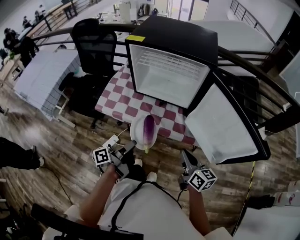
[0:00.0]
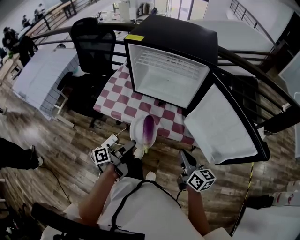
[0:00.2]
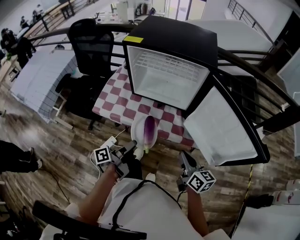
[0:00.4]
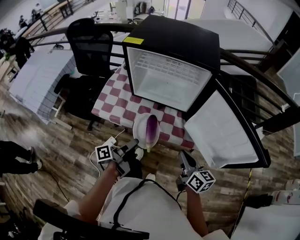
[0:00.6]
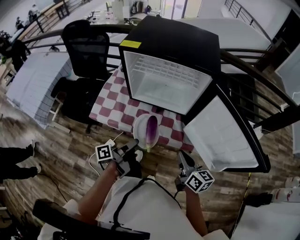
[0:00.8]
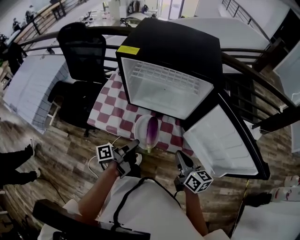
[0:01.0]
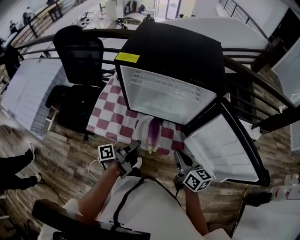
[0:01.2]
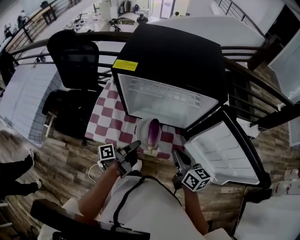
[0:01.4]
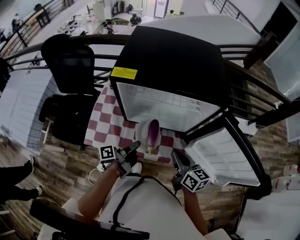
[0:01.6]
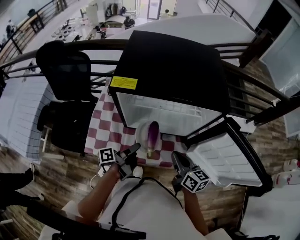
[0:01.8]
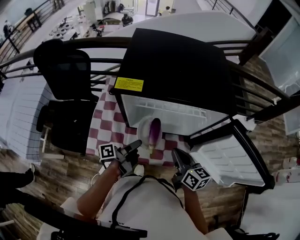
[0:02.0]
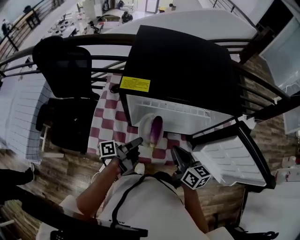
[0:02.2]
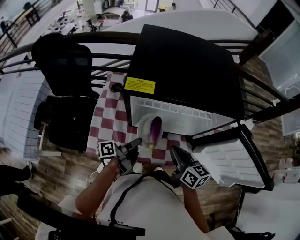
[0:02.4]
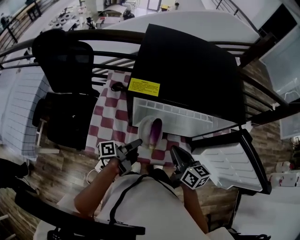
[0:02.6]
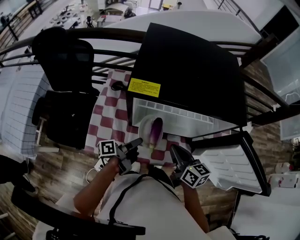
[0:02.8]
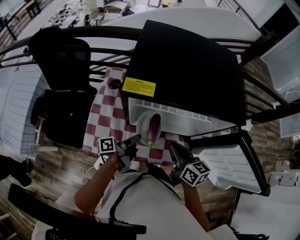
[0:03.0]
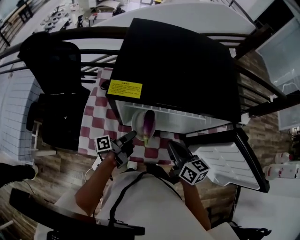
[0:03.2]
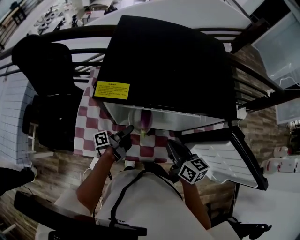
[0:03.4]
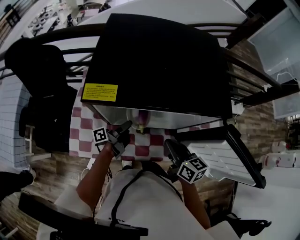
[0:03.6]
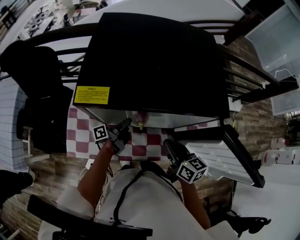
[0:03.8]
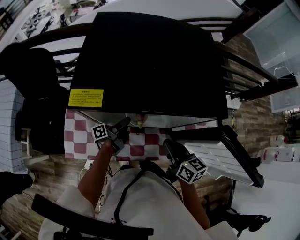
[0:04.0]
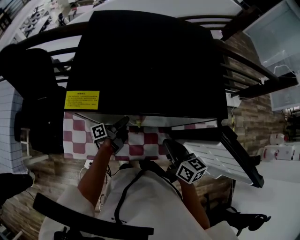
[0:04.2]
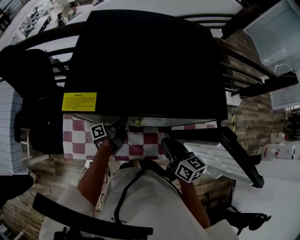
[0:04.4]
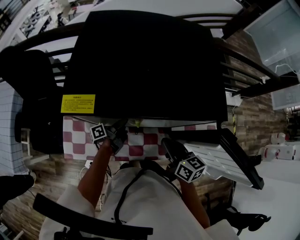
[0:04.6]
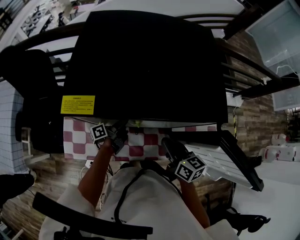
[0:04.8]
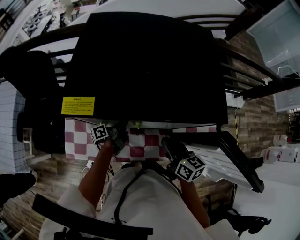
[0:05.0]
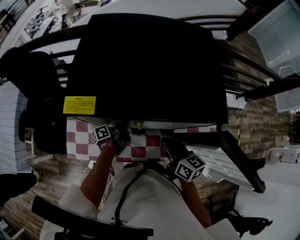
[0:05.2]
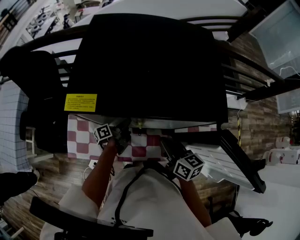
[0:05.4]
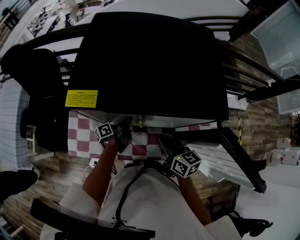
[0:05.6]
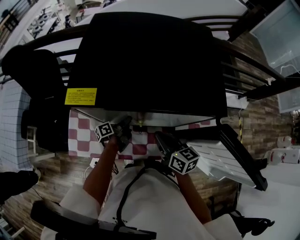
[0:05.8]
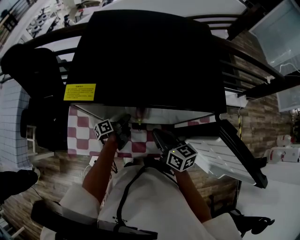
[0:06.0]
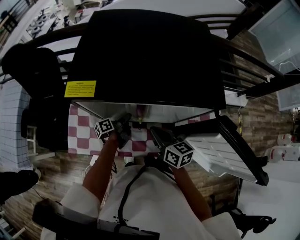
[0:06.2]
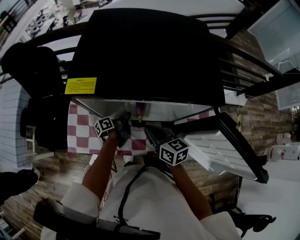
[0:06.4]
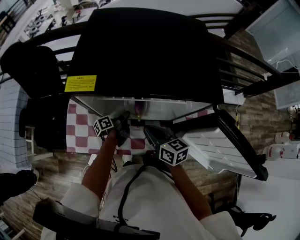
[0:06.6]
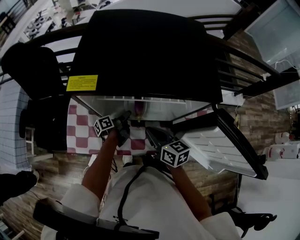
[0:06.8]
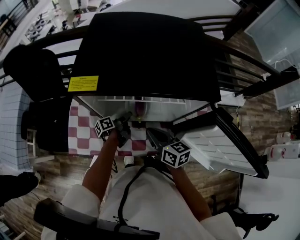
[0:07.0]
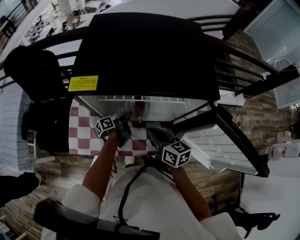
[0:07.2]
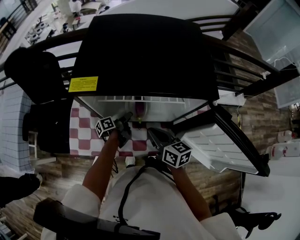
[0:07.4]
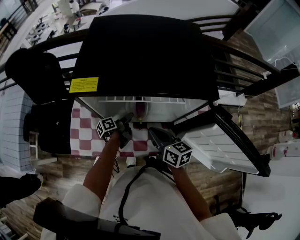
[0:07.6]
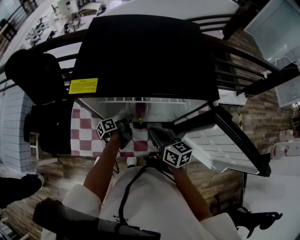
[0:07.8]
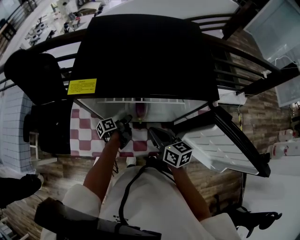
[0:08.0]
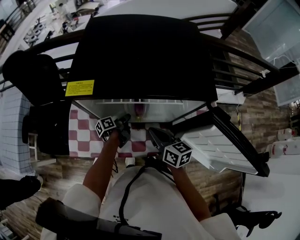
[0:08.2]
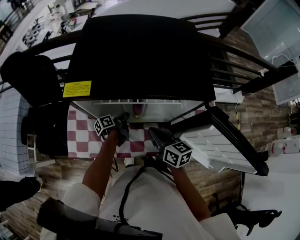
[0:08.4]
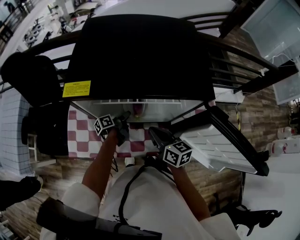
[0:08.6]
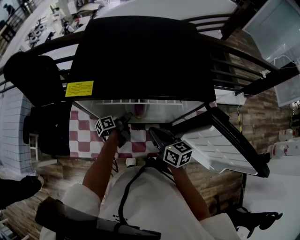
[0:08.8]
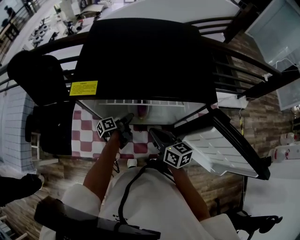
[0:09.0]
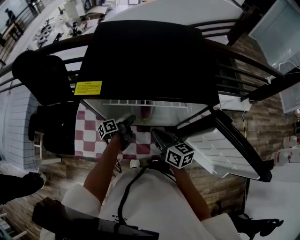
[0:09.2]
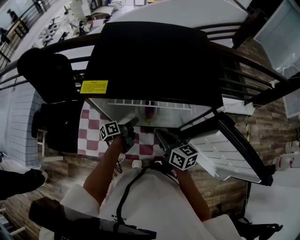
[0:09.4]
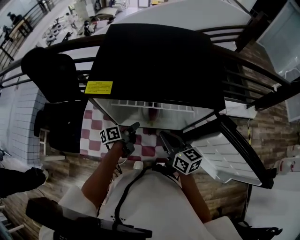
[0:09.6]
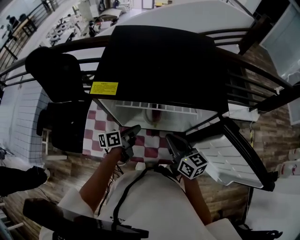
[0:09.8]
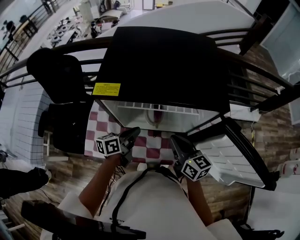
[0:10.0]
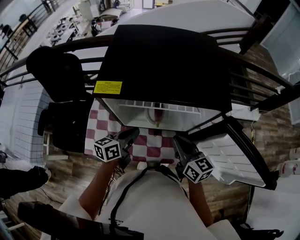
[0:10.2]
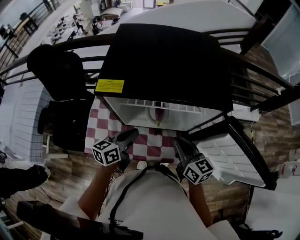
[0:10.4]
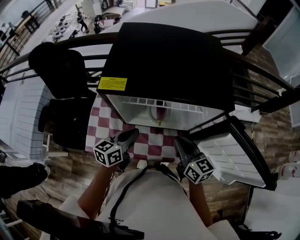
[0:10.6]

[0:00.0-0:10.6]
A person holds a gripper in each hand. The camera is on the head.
0:00.0 to 0:01.6: The right gripper moves approximately 20 cm.
0:01.6 to 0:03.0: The right gripper ends up about 10 cm from where it was.
0:03.0 to 0:04.6: The right gripper moves some 10 cm.
0:09.0 to 0:10.6: The right gripper ends up about 5 cm from where it was.

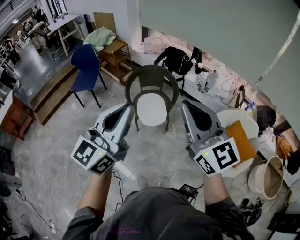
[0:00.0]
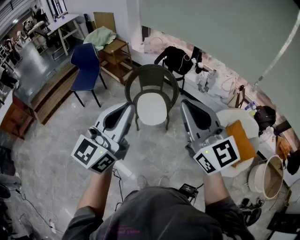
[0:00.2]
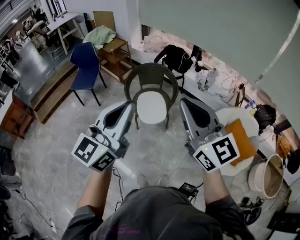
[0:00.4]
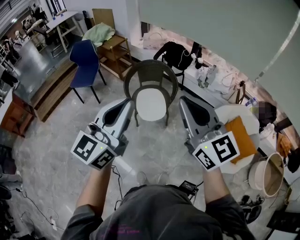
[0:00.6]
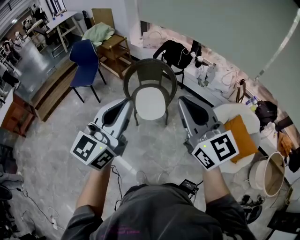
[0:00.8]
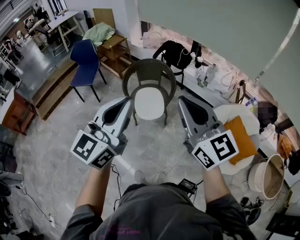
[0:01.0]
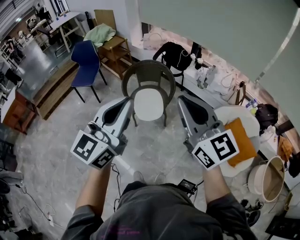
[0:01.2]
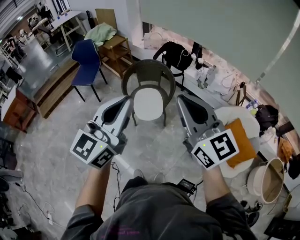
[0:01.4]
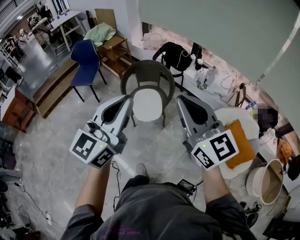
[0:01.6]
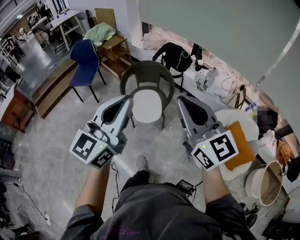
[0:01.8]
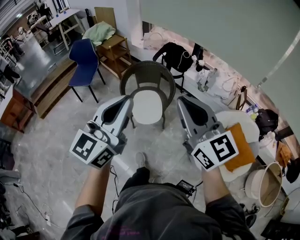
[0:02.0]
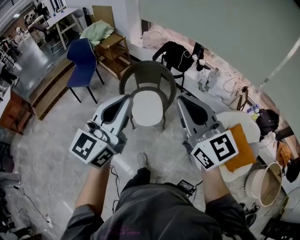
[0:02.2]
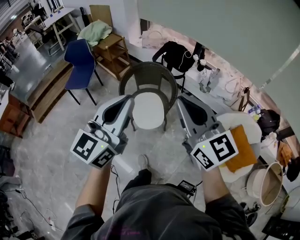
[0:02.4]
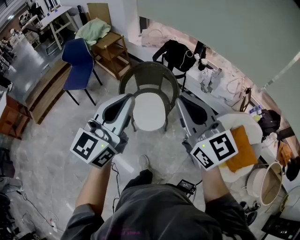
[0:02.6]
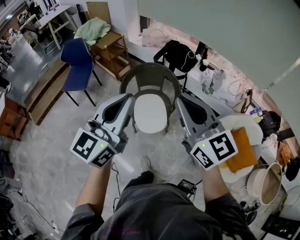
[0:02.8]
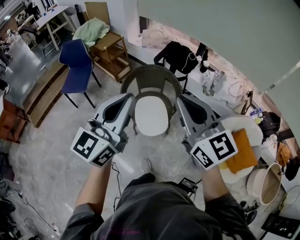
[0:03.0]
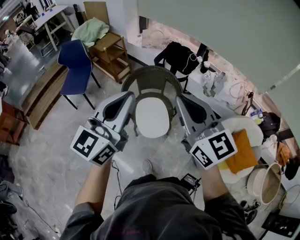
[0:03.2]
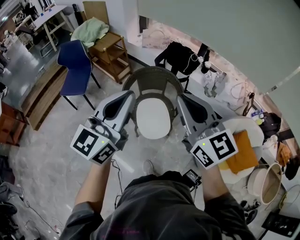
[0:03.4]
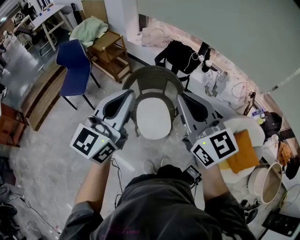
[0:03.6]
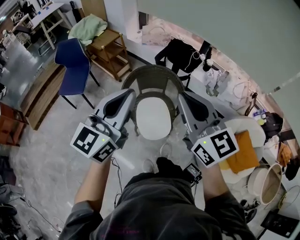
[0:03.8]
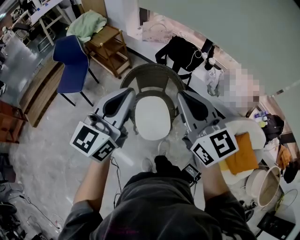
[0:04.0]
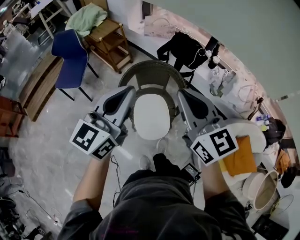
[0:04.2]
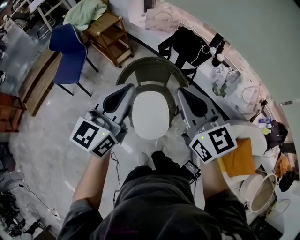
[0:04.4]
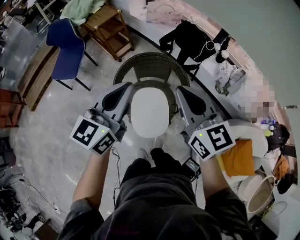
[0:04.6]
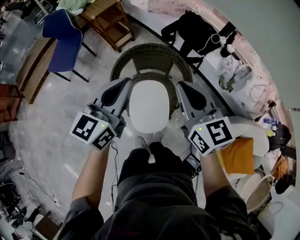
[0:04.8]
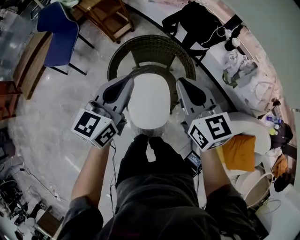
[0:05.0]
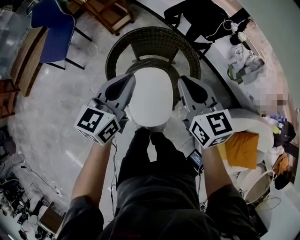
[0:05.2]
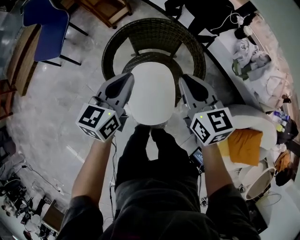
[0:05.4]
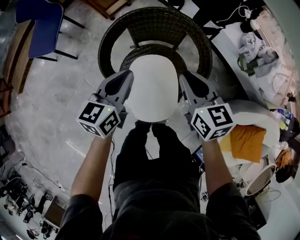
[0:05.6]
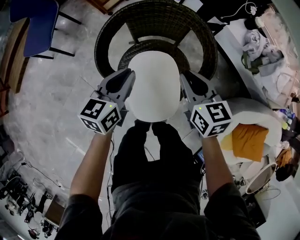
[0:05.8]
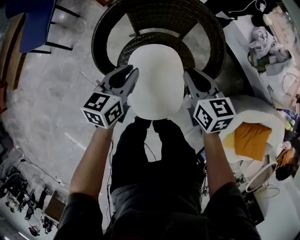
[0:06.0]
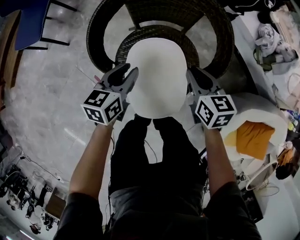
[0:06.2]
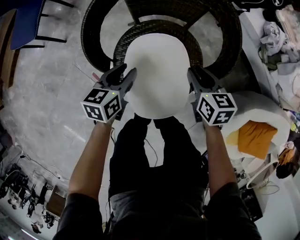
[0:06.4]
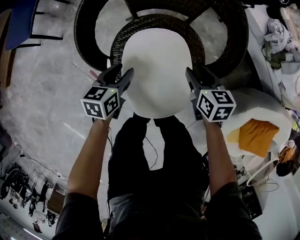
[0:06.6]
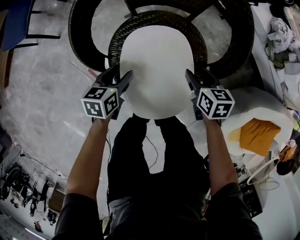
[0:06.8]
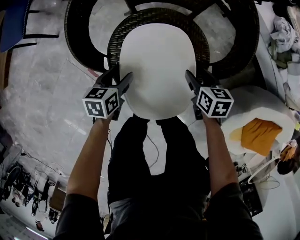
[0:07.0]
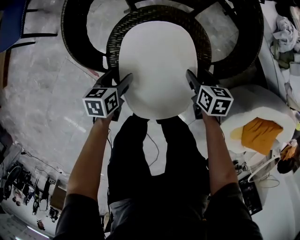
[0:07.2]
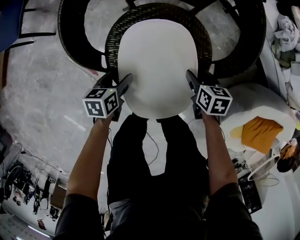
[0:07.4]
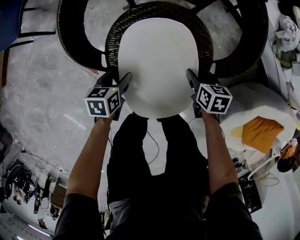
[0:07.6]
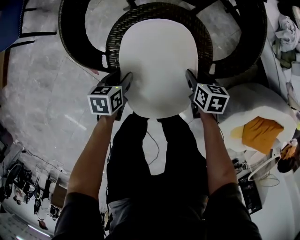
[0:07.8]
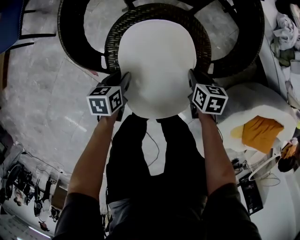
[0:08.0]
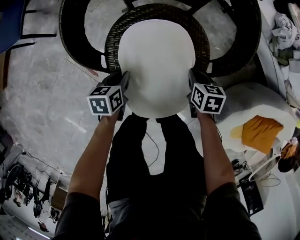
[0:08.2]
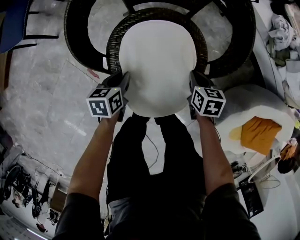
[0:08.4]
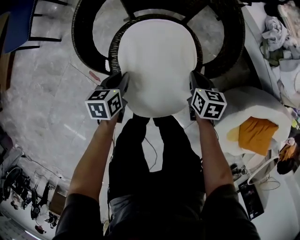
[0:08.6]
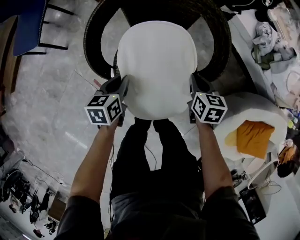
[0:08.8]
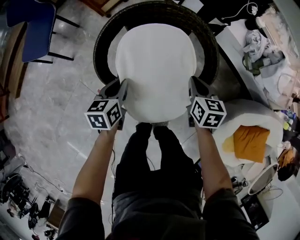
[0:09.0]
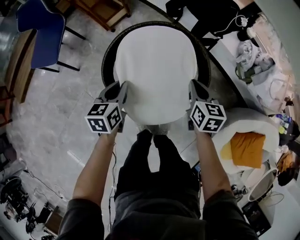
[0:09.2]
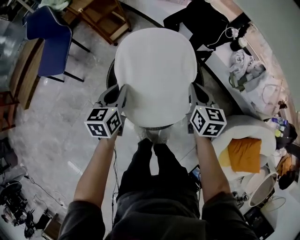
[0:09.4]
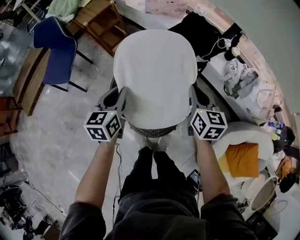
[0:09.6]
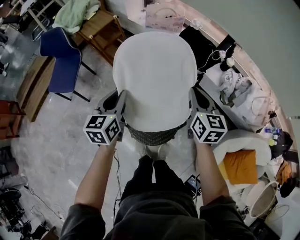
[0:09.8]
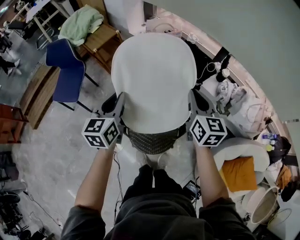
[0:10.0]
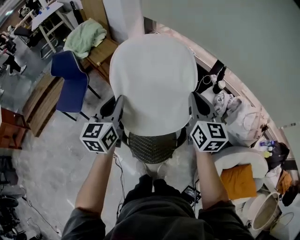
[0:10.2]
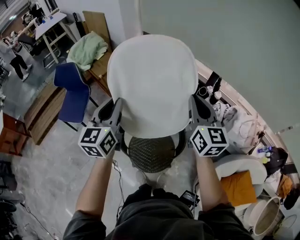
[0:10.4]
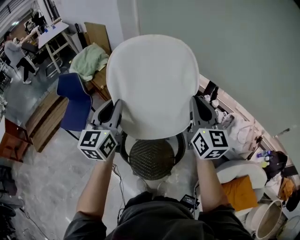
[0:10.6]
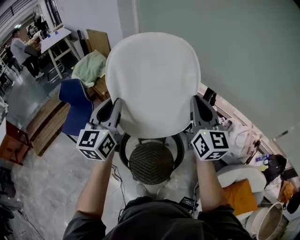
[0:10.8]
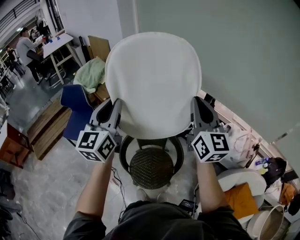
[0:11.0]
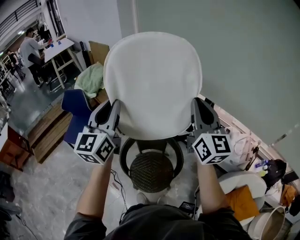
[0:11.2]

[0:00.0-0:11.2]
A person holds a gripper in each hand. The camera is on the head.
0:00.0 to 0:01.6: Both grippers travel together to the right, approximately 10 cm.
0:01.6 to 0:03.2: Both grippers move forward and to the left, roughly 30 cm.
0:03.2 to 0:04.8: Both grippers travel together forward and downward, roughly 35 cm. The left gripper changes its angle by approximately 20 degrees.
0:04.8 to 0:06.4: Both grippers move downward, about 50 cm. The left gripper points its fingers roughly 30 degrees further downward, and opens its fingers; the right gripper points its fingers about 30 degrees further downward.
0:06.4 to 0:08.0: The right gripper heads downward, covering some 15 cm, turns by roughly 20 degrees, and opens, then closes again; the left gripper travels downward and backward by approximately 15 cm, changes its angle by roughly 20 degrees, and opens, then closes once more.
0:08.0 to 0:09.6: The grippers both shift upward by about 50 cm. The right gripper angles its fingers upward, by roughly 40 degrees. The left gripper rotates some 40 degrees.
0:09.6 to 0:11.2: Both grippers travel together upward, roughly 50 cm. The right gripper tips its fingers upward by about 40 degrees; the left gripper angles its fingers upward, by some 40 degrees.

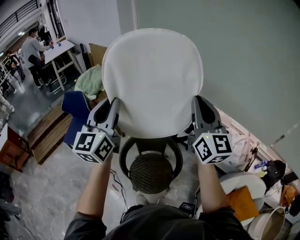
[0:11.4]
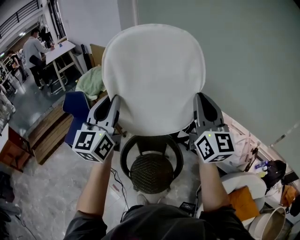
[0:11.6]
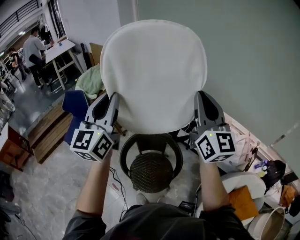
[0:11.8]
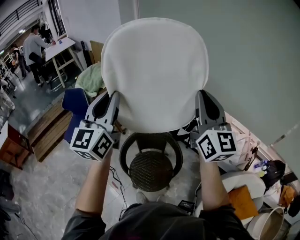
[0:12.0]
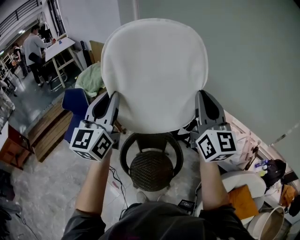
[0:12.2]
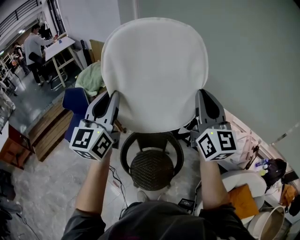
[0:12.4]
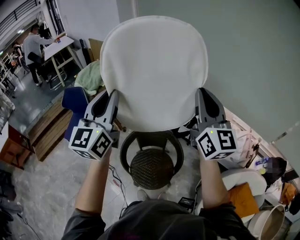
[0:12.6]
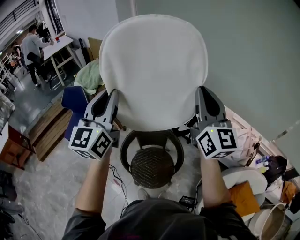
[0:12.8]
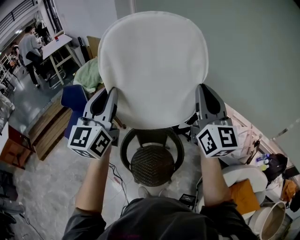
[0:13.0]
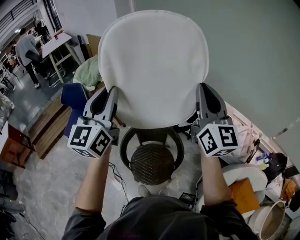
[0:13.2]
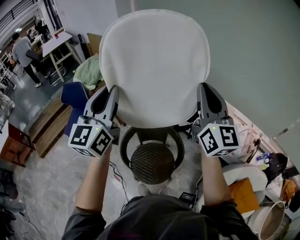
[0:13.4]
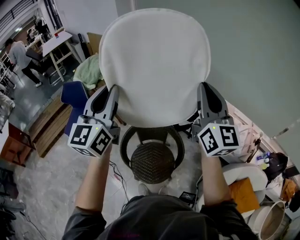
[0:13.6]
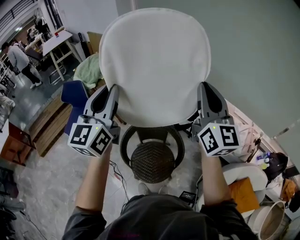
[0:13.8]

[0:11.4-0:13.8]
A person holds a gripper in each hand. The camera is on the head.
0:11.4 to 0:13.8: The grippers make only small movements.
